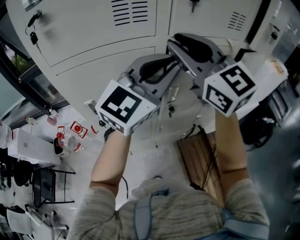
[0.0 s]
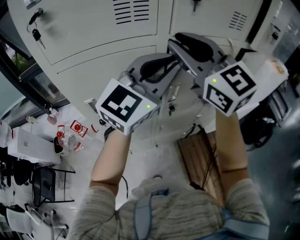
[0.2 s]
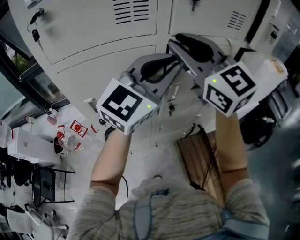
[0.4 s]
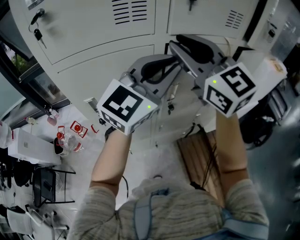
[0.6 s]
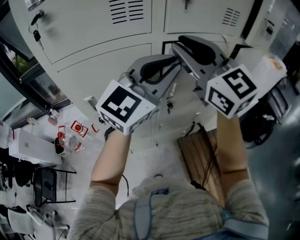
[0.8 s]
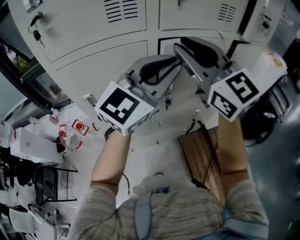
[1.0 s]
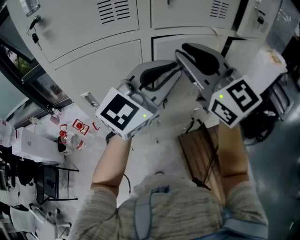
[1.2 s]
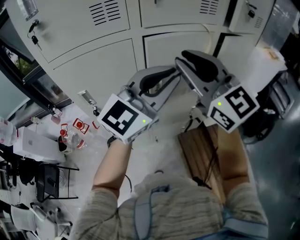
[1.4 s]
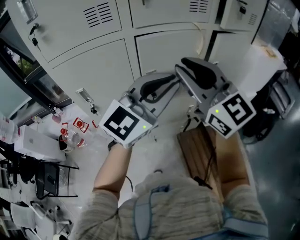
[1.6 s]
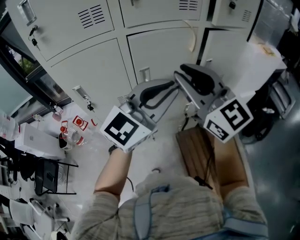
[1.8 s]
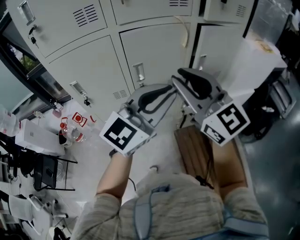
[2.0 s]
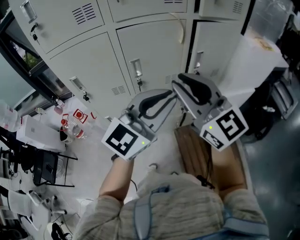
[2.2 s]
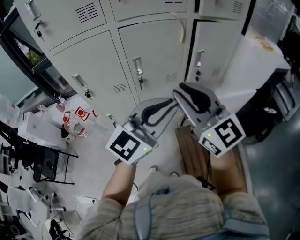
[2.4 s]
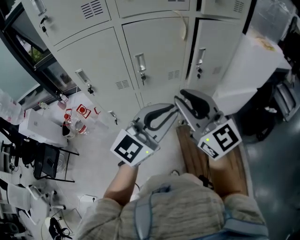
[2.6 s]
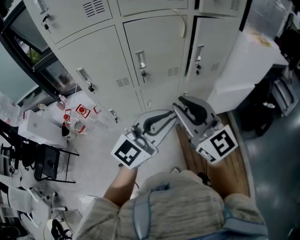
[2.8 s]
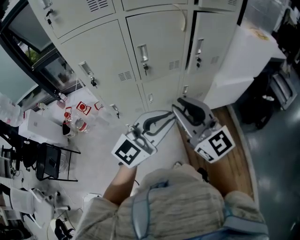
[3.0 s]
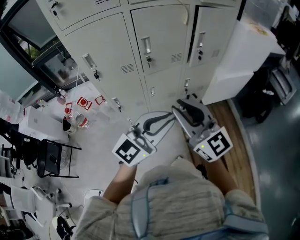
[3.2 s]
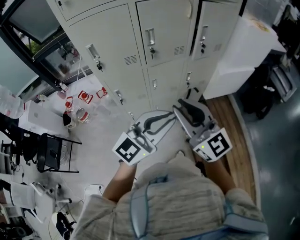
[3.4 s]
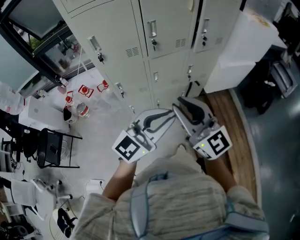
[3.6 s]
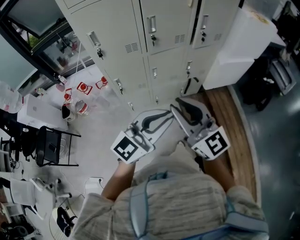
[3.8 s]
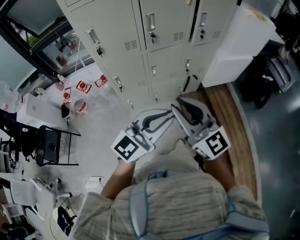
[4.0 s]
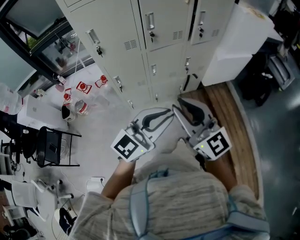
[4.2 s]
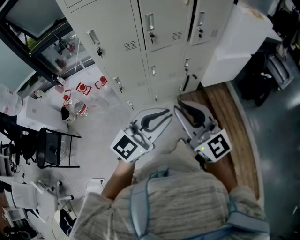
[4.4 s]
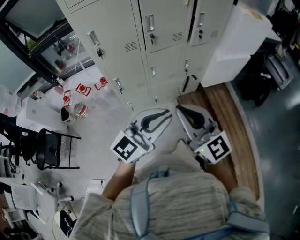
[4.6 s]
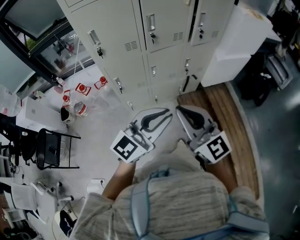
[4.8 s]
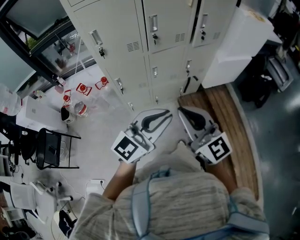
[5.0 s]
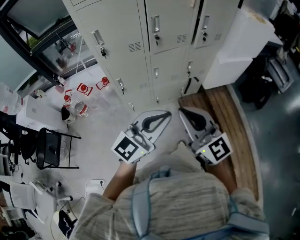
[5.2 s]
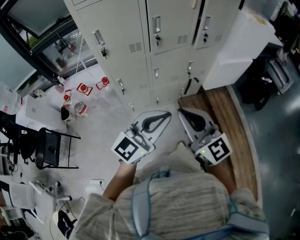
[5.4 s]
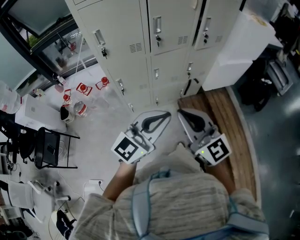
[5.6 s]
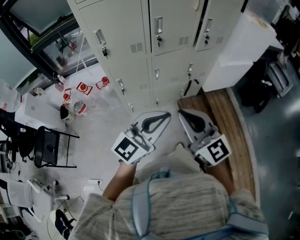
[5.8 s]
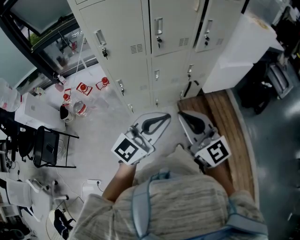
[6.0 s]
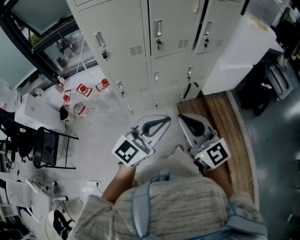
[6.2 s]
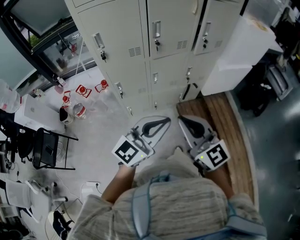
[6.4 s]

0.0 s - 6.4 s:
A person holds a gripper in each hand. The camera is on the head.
0.0 s - 1.6 s: The left gripper heads backward and to the right, covering some 15 cm, while the right gripper heads to the right and backward, covering roughly 15 cm.
1.6 s - 3.2 s: The grippers both shift backward and downward by about 25 cm.
3.2 s - 4.8 s: The left gripper moves backward, roughly 10 cm, while the right gripper travels backward and downward by about 15 cm.
4.8 s - 6.4 s: There are only small adjustments of the grippers.

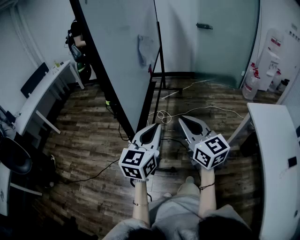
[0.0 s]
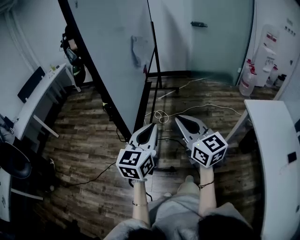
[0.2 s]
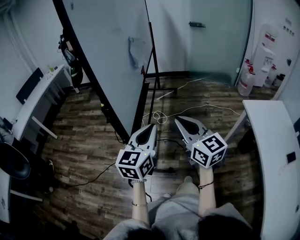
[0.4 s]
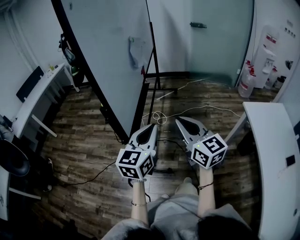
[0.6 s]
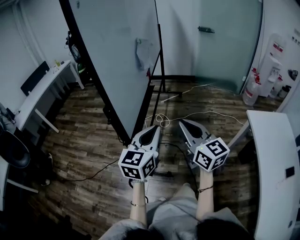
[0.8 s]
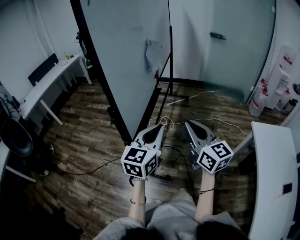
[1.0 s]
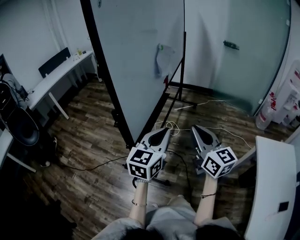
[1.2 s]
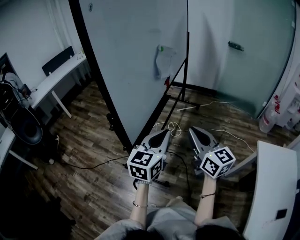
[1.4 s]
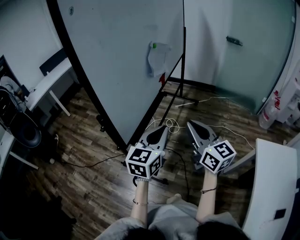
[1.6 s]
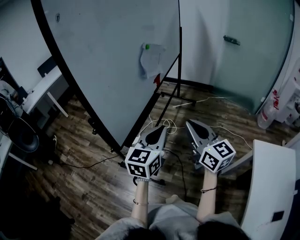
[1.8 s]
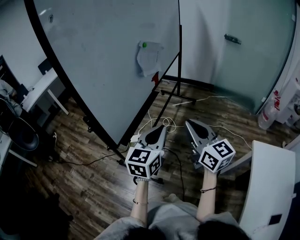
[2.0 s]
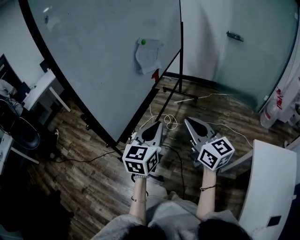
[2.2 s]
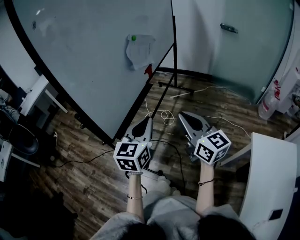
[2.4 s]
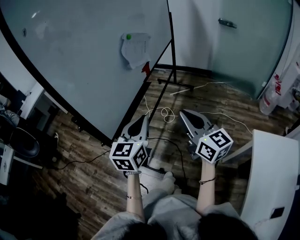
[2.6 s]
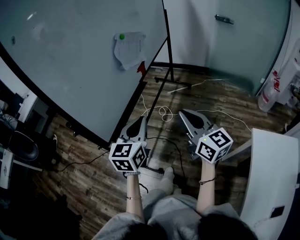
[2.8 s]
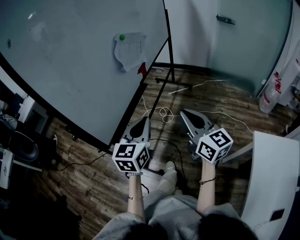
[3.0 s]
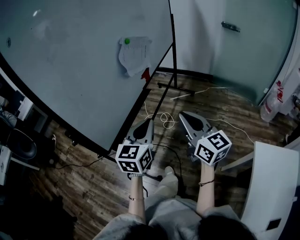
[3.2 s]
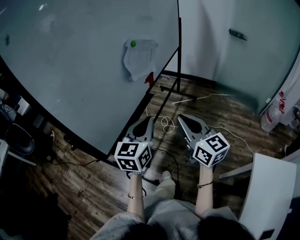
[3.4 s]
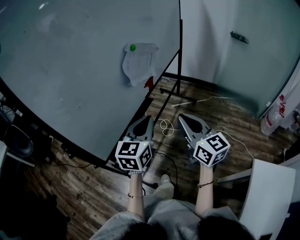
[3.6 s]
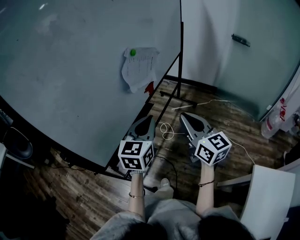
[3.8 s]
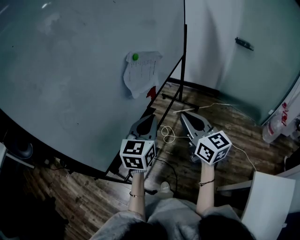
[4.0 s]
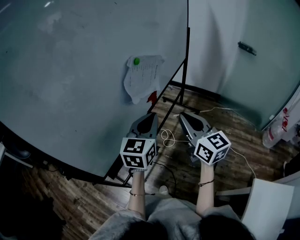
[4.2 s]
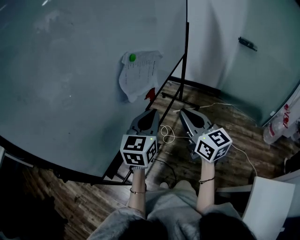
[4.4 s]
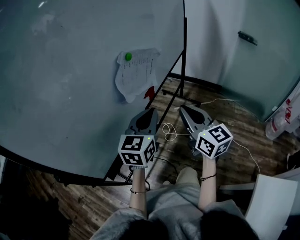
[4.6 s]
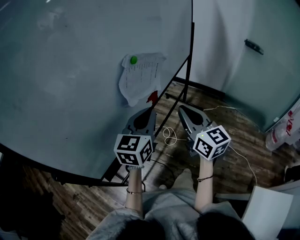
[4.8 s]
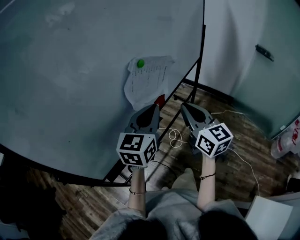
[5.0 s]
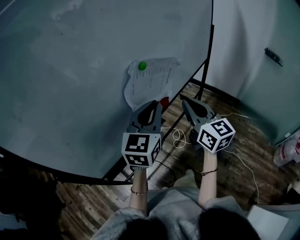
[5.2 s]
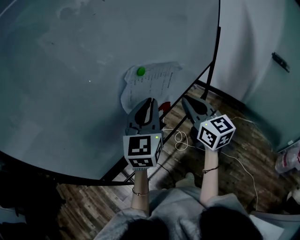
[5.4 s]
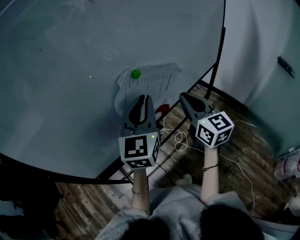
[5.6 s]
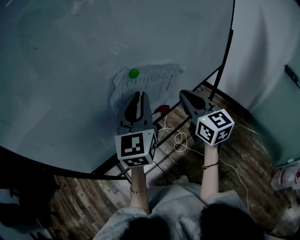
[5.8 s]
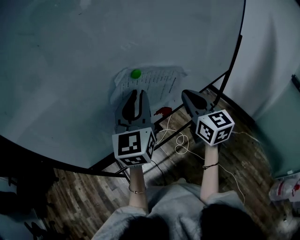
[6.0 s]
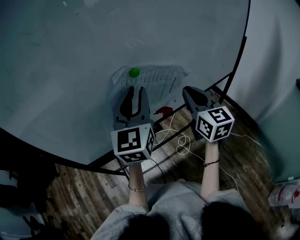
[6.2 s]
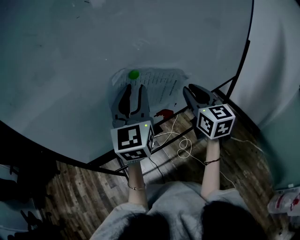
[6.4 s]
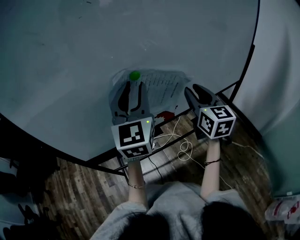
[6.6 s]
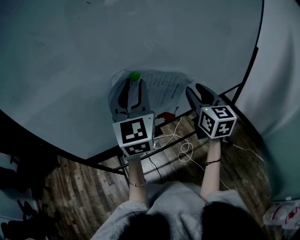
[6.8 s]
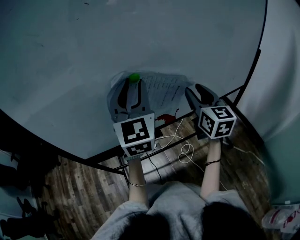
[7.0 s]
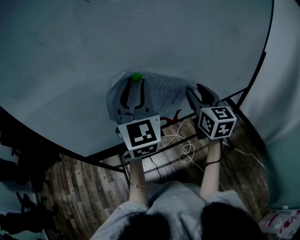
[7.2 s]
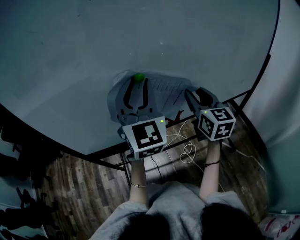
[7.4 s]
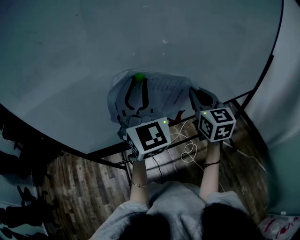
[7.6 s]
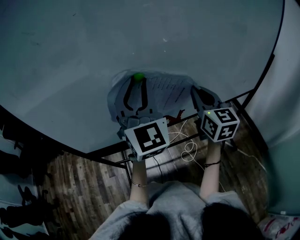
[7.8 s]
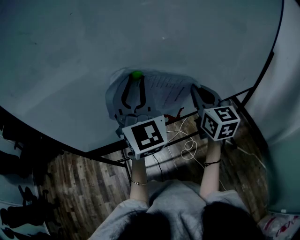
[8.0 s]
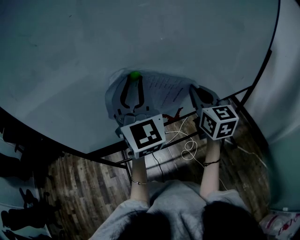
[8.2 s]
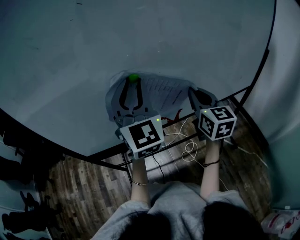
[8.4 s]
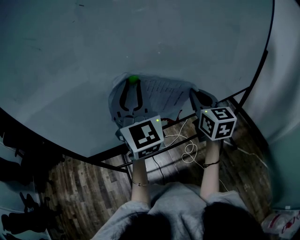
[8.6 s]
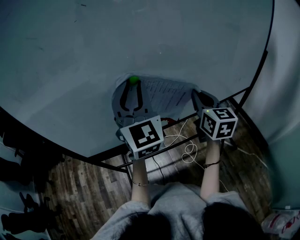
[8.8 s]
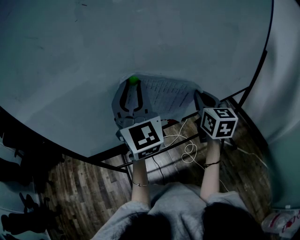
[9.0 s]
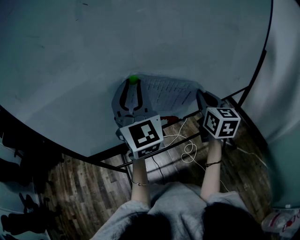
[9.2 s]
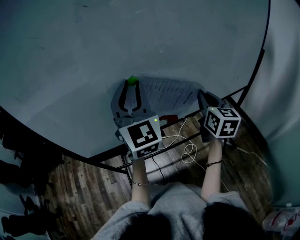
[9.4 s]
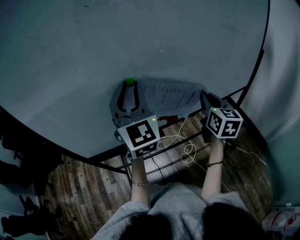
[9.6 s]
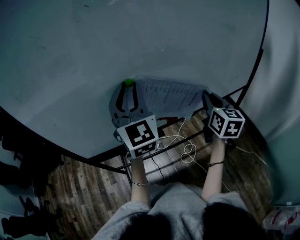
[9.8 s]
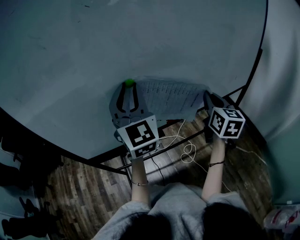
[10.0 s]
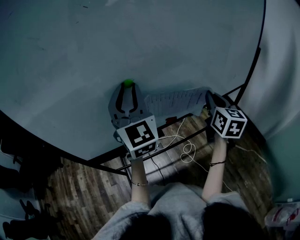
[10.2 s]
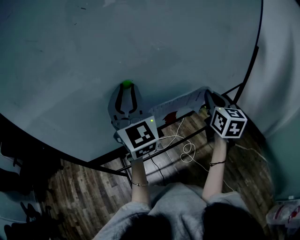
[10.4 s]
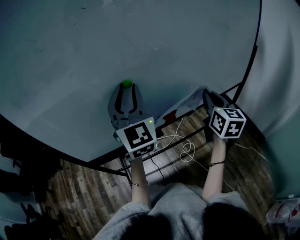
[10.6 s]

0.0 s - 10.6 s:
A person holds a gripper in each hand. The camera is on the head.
0.0 s - 1.6 s: Both grippers travel together forward and to the right, about 15 cm.
1.6 s - 3.0 s: The right gripper goes about 10 cm to the right and forward. The left gripper moves forward and to the right, about 10 cm.
3.0 s - 4.6 s: The two grippers go about 25 cm forward.
4.6 s - 6.0 s: The left gripper moves approximately 15 cm, and swivels some 40 degrees. The right gripper changes place by some 20 cm, and turns by roughly 20 degrees.
6.0 s - 7.6 s: The right gripper goes about 10 cm forward, and opens, then closes again. The left gripper moves approximately 5 cm, and turns by about 40 degrees.
7.6 s - 9.0 s: The grippers stay close to where they were, moving slightly.
9.0 s - 10.6 s: The right gripper changes place by some 5 cm.

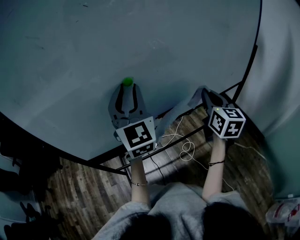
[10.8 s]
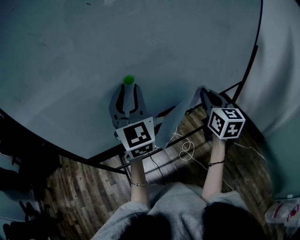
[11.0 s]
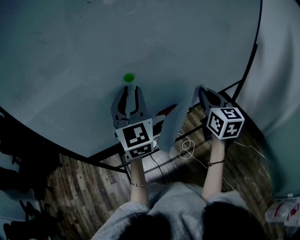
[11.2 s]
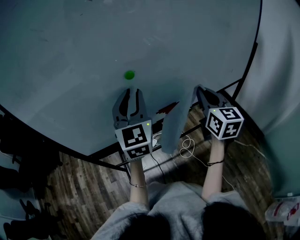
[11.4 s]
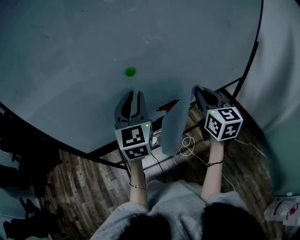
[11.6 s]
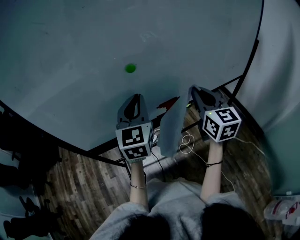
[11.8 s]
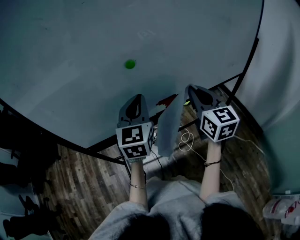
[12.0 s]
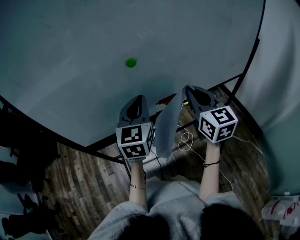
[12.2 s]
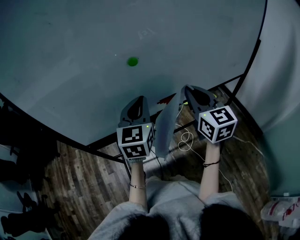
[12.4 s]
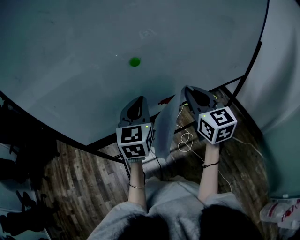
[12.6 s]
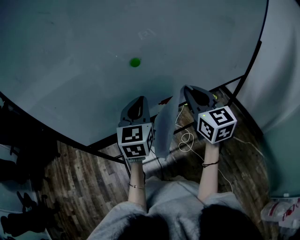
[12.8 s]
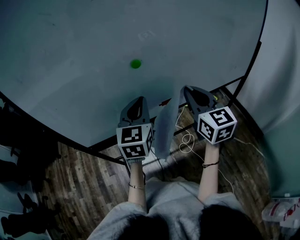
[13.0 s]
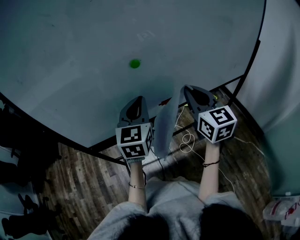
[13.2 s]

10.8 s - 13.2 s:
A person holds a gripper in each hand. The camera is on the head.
10.8 s - 12.0 s: The right gripper goes about 10 cm to the left. Meanwhile the left gripper goes roughly 10 cm downward, swivels some 20 degrees, and closes its fingers.
12.0 s - 13.2 s: The grippers stay close to where they were, moving slightly.

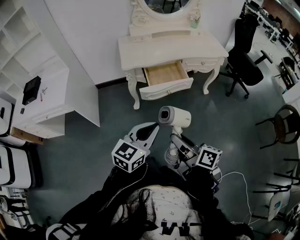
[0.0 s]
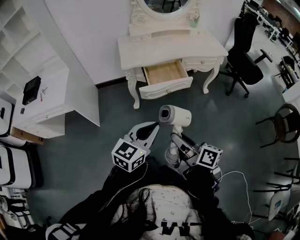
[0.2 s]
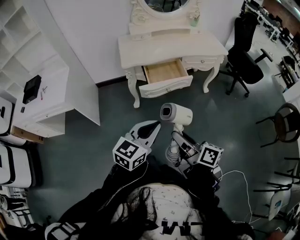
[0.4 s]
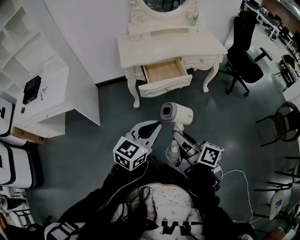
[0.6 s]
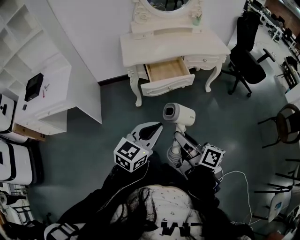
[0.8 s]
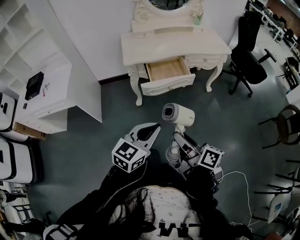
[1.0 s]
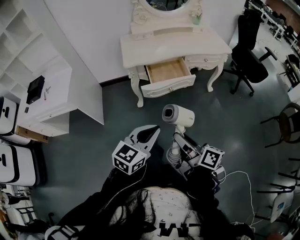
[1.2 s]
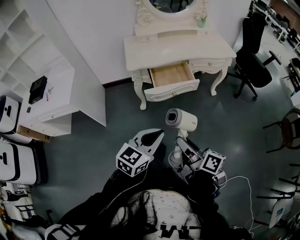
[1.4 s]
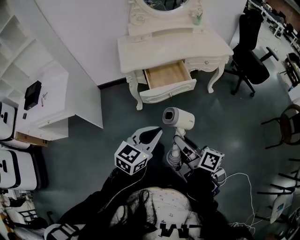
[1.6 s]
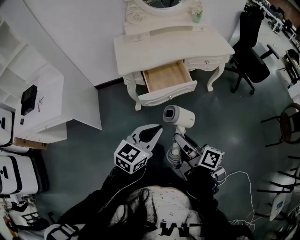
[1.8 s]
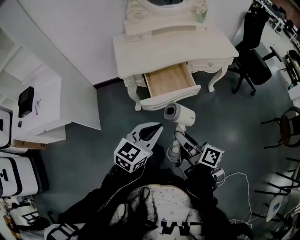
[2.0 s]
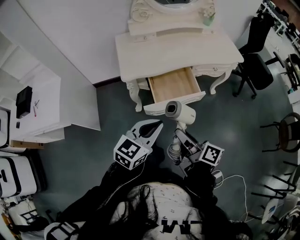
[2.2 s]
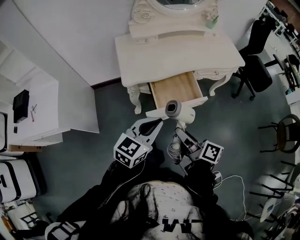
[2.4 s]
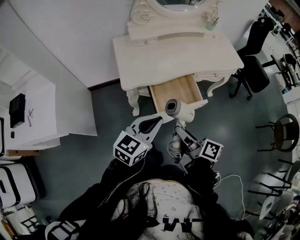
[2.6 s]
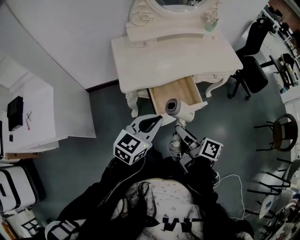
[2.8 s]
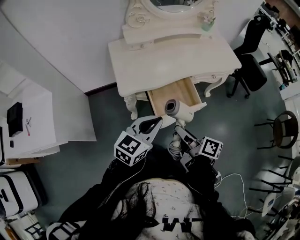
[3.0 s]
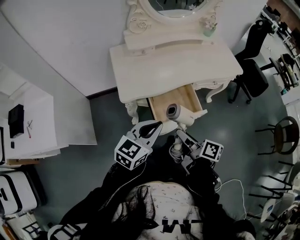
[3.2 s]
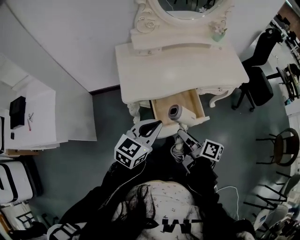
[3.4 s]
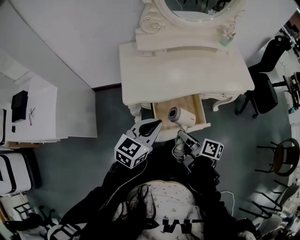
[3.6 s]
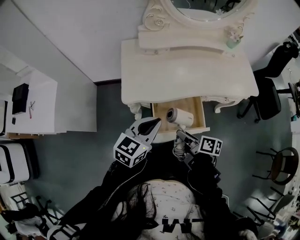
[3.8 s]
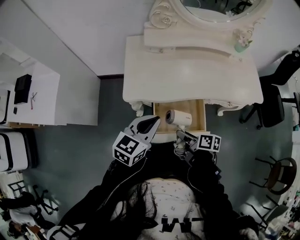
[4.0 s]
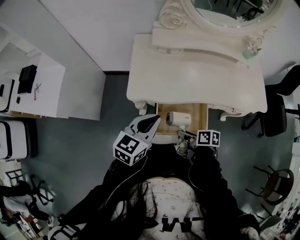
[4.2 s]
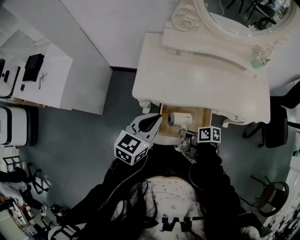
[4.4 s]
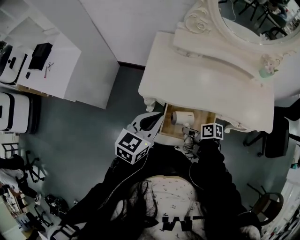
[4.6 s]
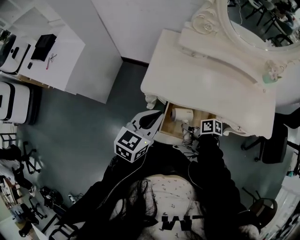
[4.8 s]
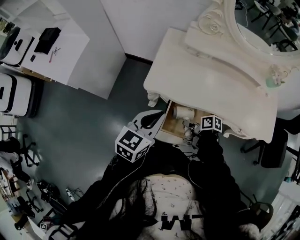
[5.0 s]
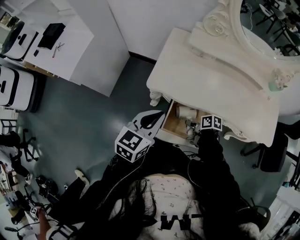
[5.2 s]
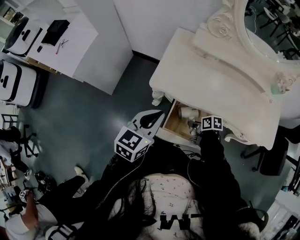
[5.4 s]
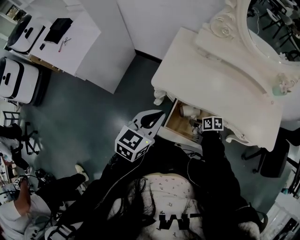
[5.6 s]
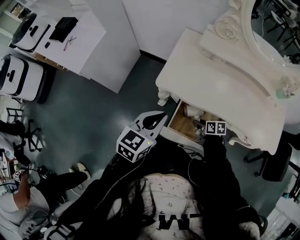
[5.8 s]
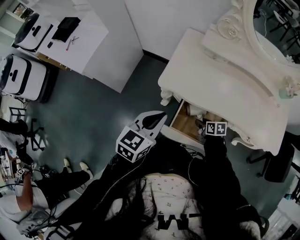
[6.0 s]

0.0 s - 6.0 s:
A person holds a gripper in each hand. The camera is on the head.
0.0 s - 1.6 s: The grippers move only a little.
1.6 s - 3.0 s: Both grippers move forward, approximately 25 cm.
3.0 s - 4.4 s: The right gripper heads downward, covering about 15 cm, and turns by some 50 degrees; the left gripper moves about 10 cm, and swivels some 30 degrees.
4.4 s - 6.0 s: The right gripper shifts about 15 cm downward and forward, and swivels approximately 30 degrees; the left gripper moves to the left, some 5 cm.
